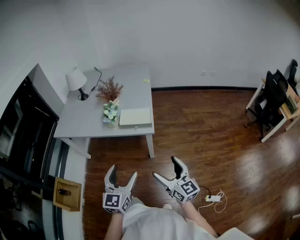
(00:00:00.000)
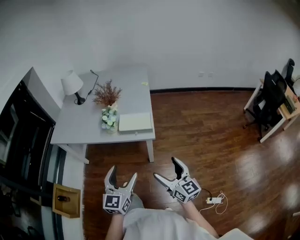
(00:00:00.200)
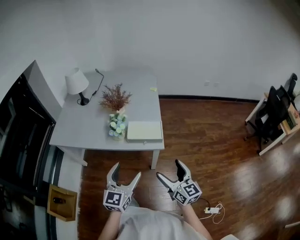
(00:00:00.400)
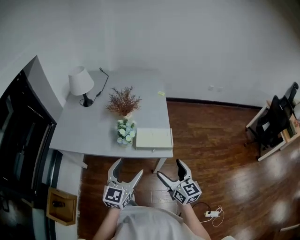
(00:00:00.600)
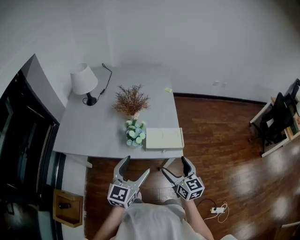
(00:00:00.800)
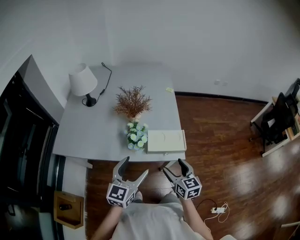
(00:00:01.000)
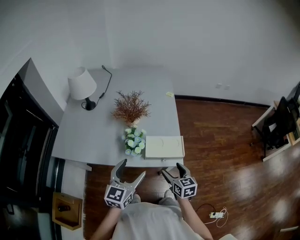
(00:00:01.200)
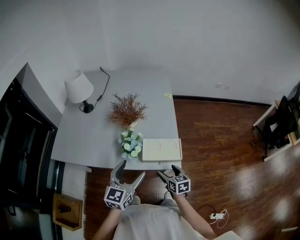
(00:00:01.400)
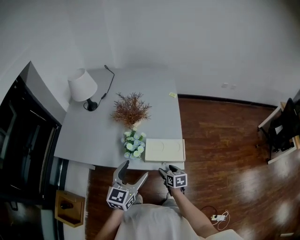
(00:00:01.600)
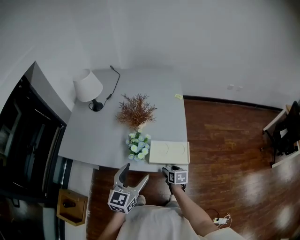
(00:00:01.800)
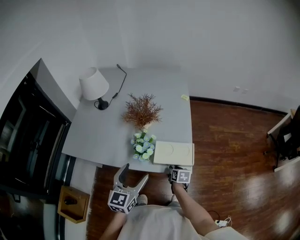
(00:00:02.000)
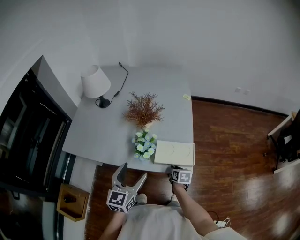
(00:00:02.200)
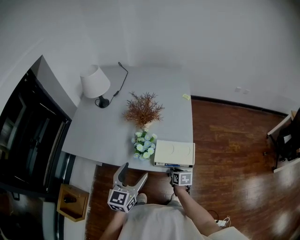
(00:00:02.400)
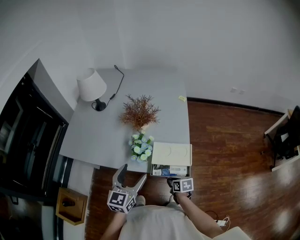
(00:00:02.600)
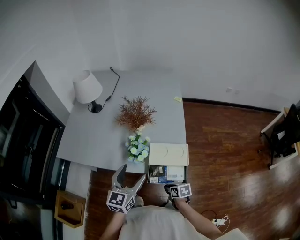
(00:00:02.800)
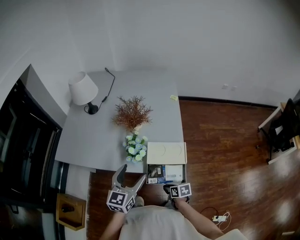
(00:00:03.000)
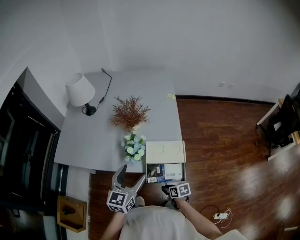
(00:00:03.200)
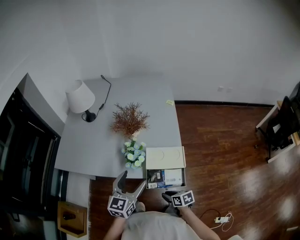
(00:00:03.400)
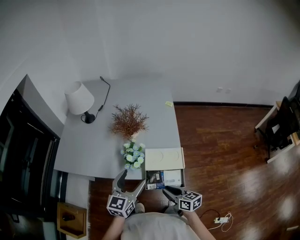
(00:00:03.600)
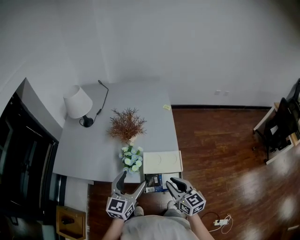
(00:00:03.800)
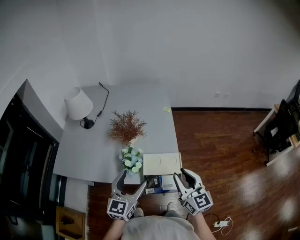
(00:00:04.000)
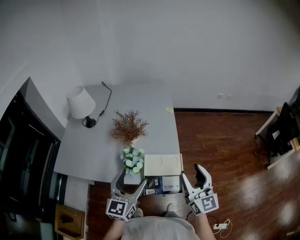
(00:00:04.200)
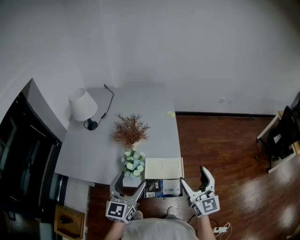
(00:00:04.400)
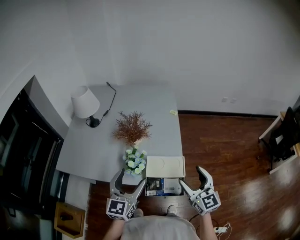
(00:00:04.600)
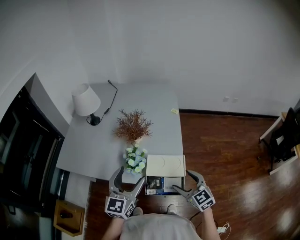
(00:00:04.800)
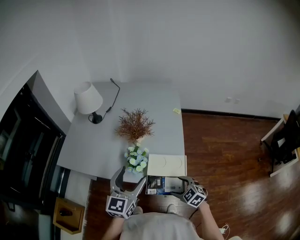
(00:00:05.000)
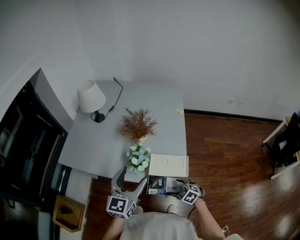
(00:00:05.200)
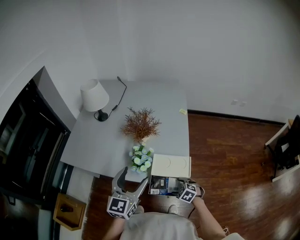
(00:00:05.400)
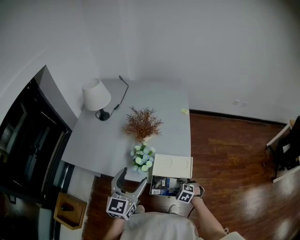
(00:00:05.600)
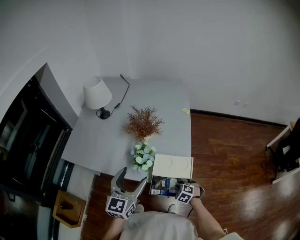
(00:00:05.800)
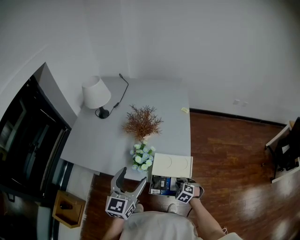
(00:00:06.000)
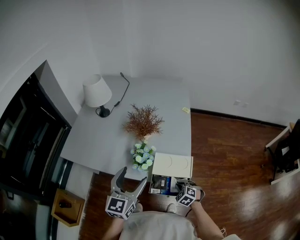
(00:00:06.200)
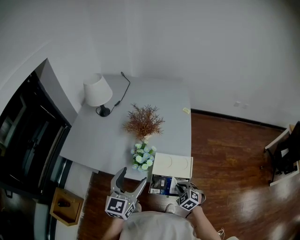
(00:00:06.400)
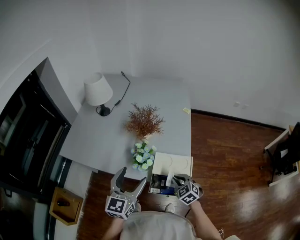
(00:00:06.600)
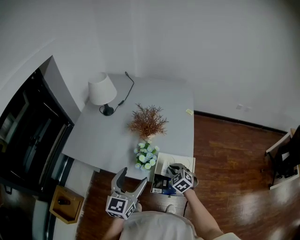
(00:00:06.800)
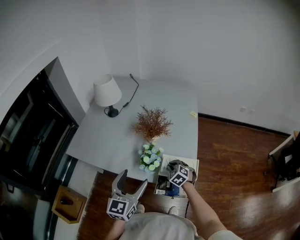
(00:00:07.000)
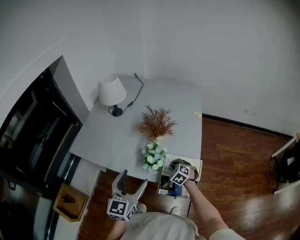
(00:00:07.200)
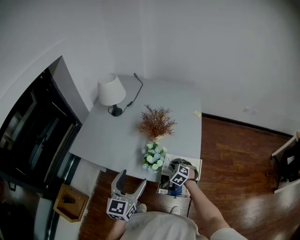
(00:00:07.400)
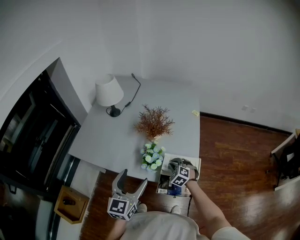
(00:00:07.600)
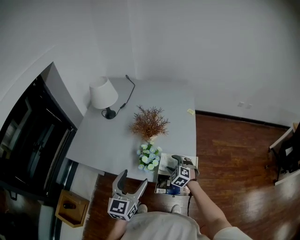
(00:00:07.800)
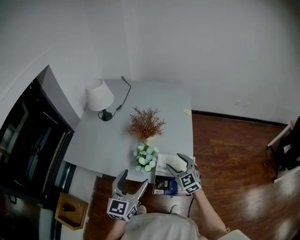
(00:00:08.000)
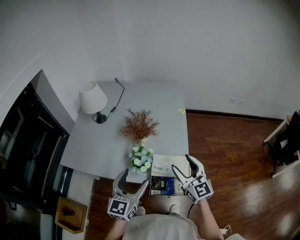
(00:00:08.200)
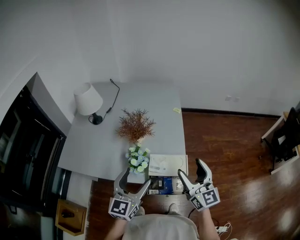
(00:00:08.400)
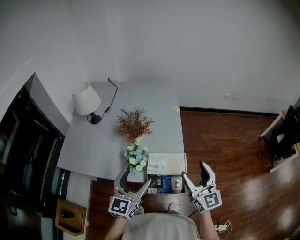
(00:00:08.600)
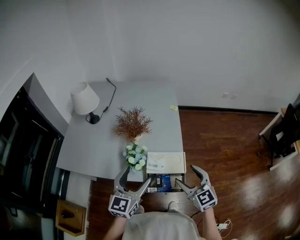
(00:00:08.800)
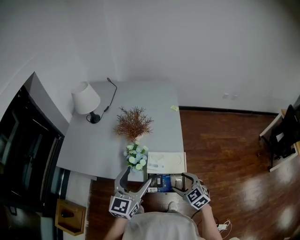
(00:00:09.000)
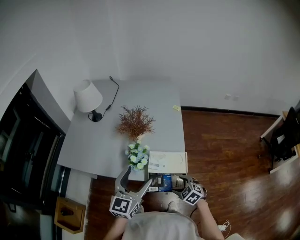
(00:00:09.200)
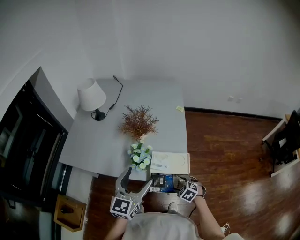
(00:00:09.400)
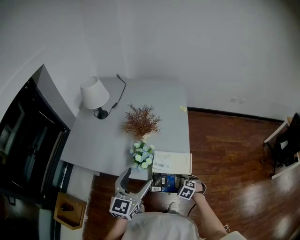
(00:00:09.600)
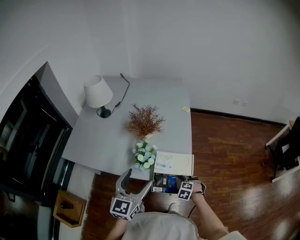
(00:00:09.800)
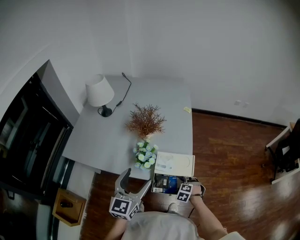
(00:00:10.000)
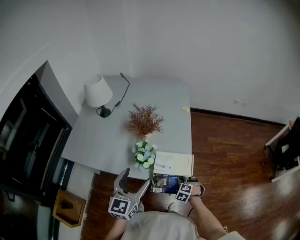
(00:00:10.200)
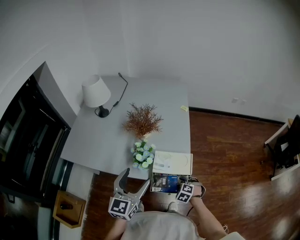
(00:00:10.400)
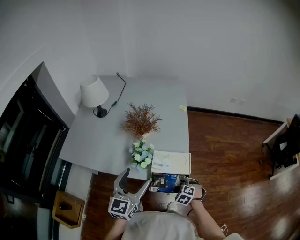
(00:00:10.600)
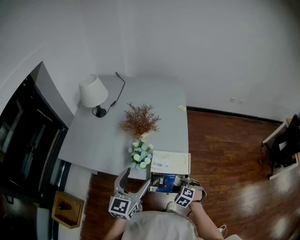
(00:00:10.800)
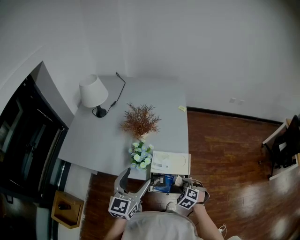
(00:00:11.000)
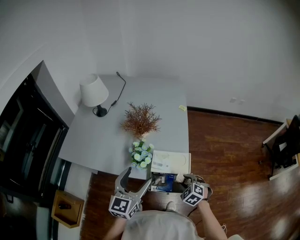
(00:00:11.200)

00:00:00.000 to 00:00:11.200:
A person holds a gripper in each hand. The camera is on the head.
00:00:00.000 to 00:00:01.600: The left gripper goes about 30 cm forward, while the right gripper is displaced forward, downward and to the left by about 40 cm, tilts its fingers about 40 degrees downward, and closes up.
00:00:01.600 to 00:00:03.200: The right gripper moves backward and downward, about 10 cm, changes its angle by some 20 degrees, and closes its fingers.
00:00:03.200 to 00:00:04.800: The left gripper goes some 10 cm upward. The right gripper moves upward, about 25 cm, rolls counterclockwise, seen from behind, by about 50 degrees, and opens its fingers.
00:00:04.800 to 00:00:06.400: The right gripper is displaced downward by about 15 cm, changes its angle by approximately 30 degrees, and closes its fingers.
00:00:06.400 to 00:00:08.000: The right gripper moves upward and forward, roughly 20 cm, tips its fingers upward by about 30 degrees, and opens up.
00:00:08.000 to 00:00:09.600: The right gripper moves downward and backward, roughly 25 cm, and points its fingers approximately 50 degrees further downward.
00:00:09.600 to 00:00:11.200: The right gripper is displaced upward by about 10 cm.

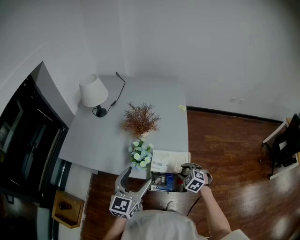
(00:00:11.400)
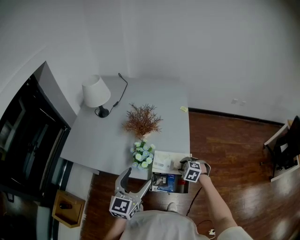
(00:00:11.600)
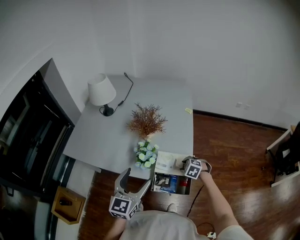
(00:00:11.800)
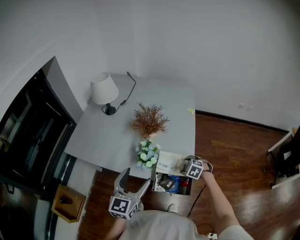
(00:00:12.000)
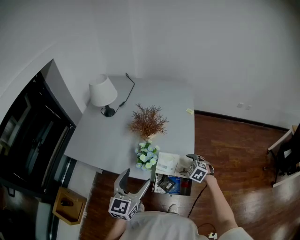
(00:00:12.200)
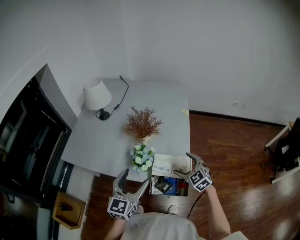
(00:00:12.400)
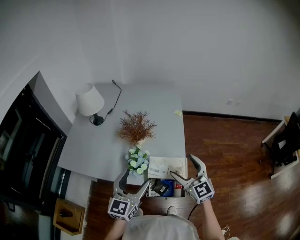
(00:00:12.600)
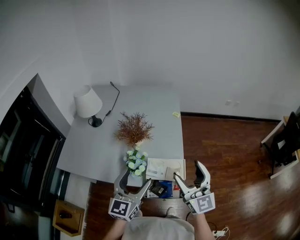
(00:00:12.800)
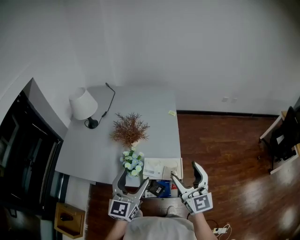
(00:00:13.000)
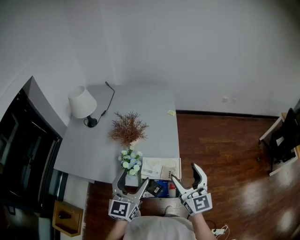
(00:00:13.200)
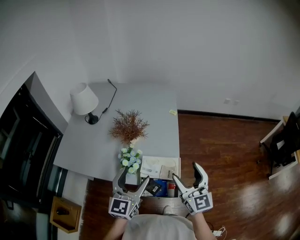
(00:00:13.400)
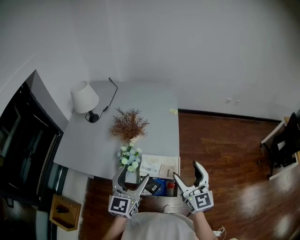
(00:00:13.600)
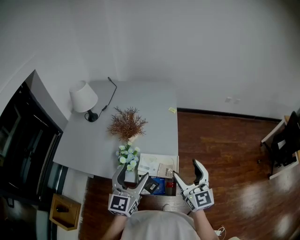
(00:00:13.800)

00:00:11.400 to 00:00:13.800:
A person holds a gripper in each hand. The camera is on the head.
00:00:11.400 to 00:00:12.600: The right gripper is displaced upward by approximately 20 cm, tips its fingers upward by some 50 degrees, and opens its fingers.
00:00:12.600 to 00:00:13.800: The grippers both shift to the right by some 5 cm.

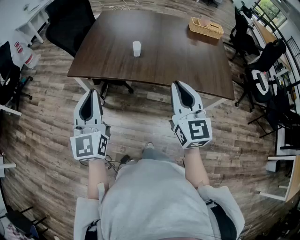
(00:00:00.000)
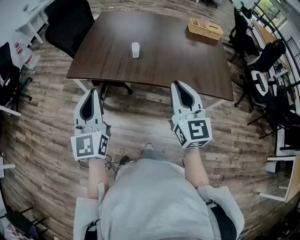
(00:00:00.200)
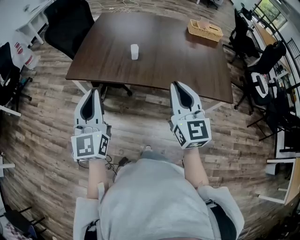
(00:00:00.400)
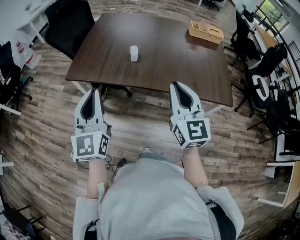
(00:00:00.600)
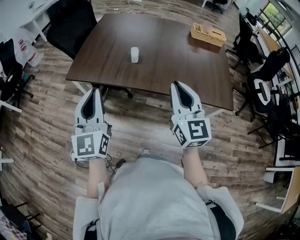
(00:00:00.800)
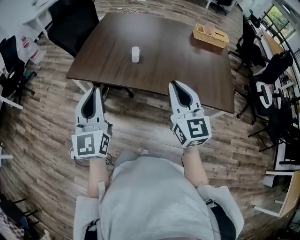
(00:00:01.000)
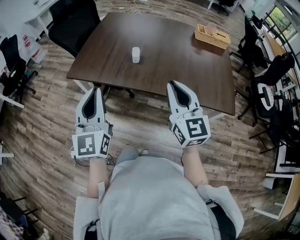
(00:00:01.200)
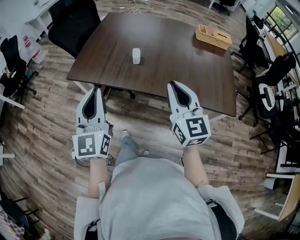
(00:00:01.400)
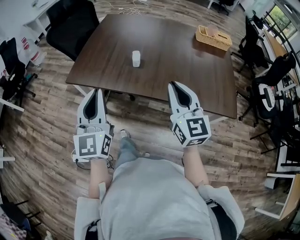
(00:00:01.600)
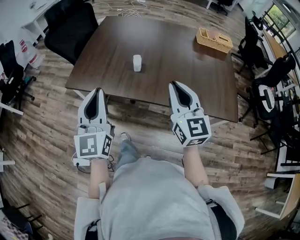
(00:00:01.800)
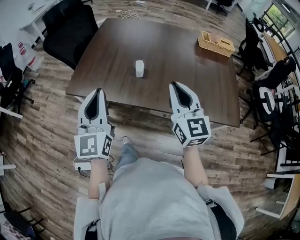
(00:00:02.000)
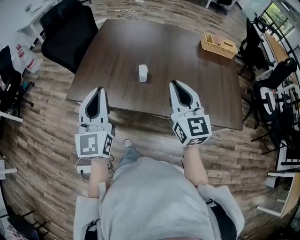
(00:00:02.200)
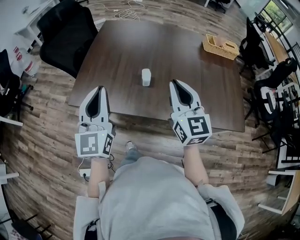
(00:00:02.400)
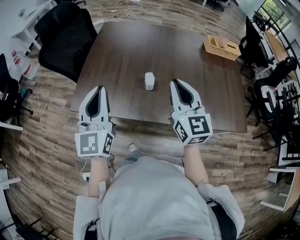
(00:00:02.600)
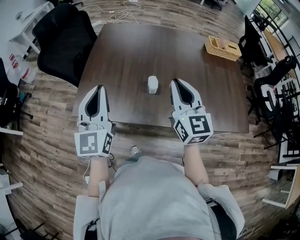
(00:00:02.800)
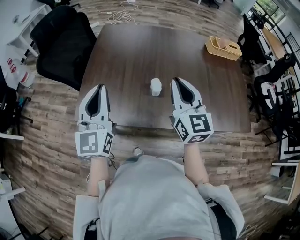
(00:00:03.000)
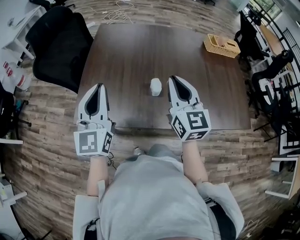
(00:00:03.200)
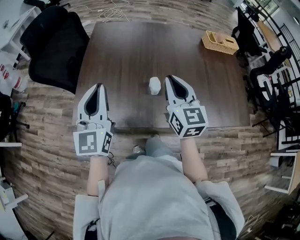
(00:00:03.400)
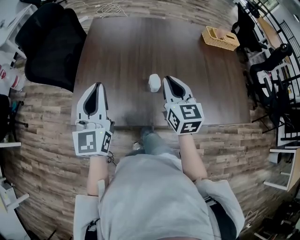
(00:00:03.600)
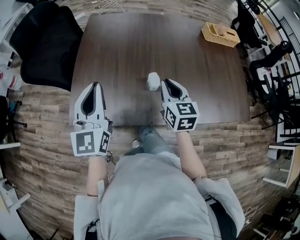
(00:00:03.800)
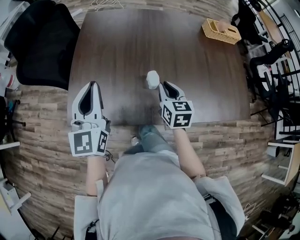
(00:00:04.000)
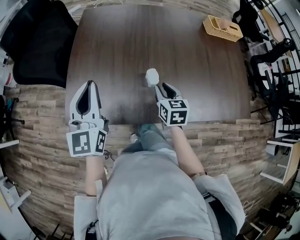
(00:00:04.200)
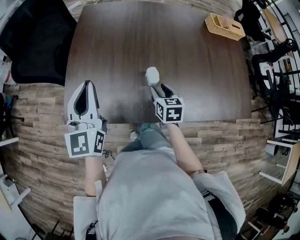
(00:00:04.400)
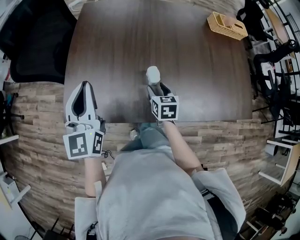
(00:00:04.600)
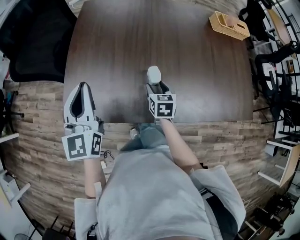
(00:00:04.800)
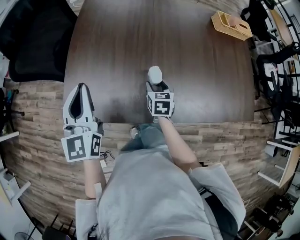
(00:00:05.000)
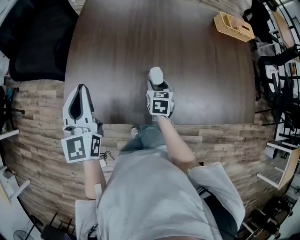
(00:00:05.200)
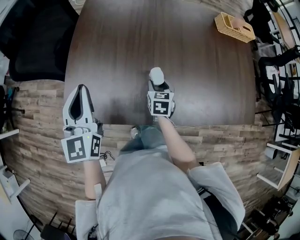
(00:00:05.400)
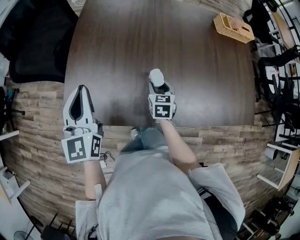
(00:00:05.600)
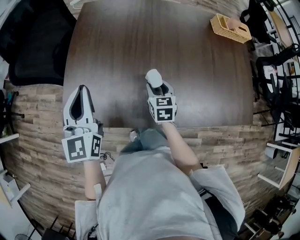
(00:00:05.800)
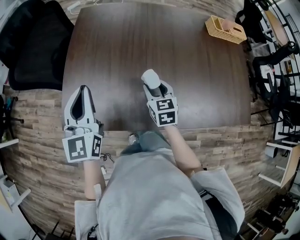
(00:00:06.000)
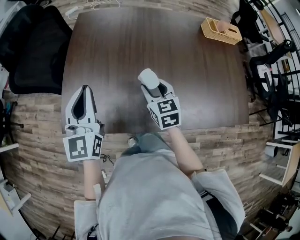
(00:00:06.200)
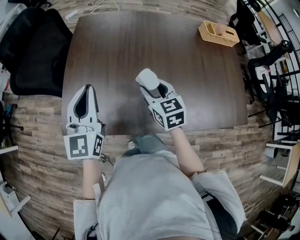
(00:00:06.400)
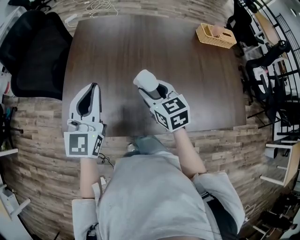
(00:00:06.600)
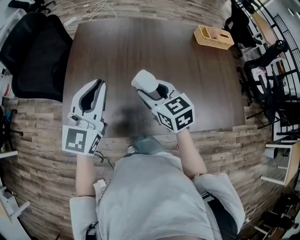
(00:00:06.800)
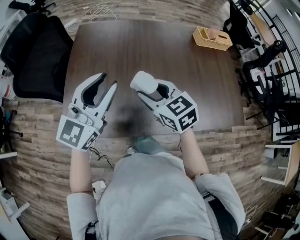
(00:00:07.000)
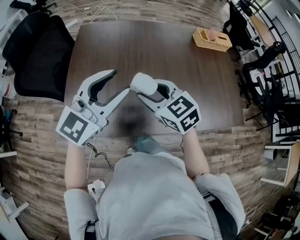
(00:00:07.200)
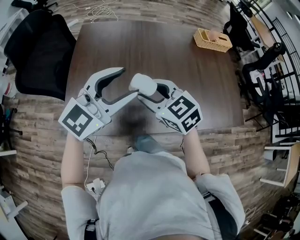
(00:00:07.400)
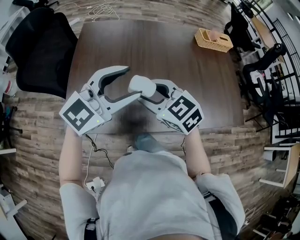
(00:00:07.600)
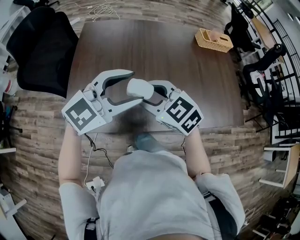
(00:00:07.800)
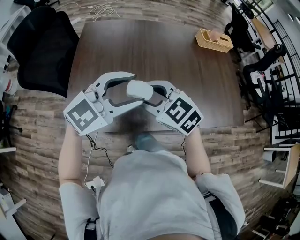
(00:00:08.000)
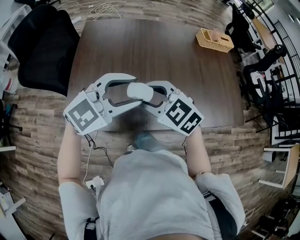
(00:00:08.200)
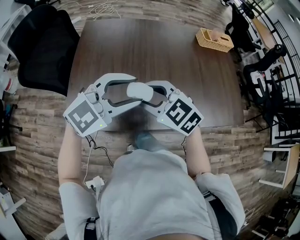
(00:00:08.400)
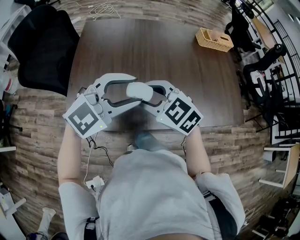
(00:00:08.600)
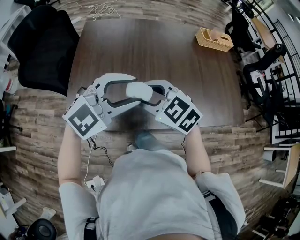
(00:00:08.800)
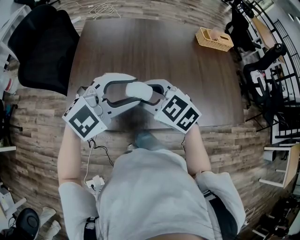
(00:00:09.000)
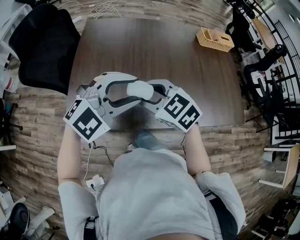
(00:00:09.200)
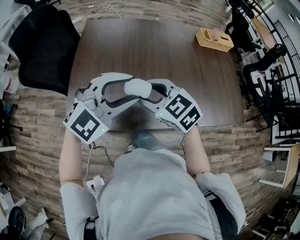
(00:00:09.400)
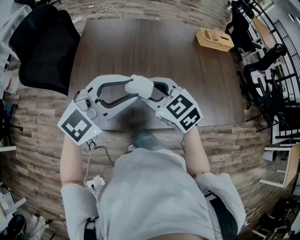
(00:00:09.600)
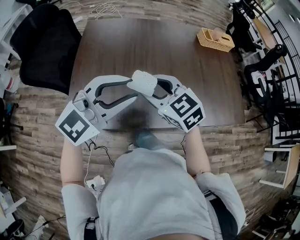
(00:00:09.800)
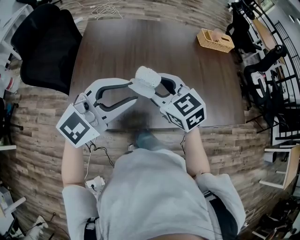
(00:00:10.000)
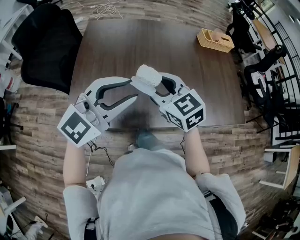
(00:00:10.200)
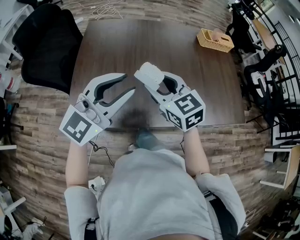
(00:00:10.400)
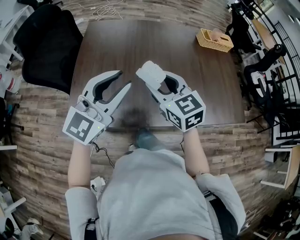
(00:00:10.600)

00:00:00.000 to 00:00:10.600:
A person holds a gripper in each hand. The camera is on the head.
00:00:00.000 to 00:00:01.600: The left gripper goes some 10 cm forward and to the right. Meanwhile the right gripper heads forward, covering some 10 cm.
00:00:01.600 to 00:00:03.000: Both grippers move forward and to the left, some 25 cm.
00:00:03.000 to 00:00:04.600: The right gripper goes approximately 30 cm downward, tips its fingers downward by about 40 degrees, and opens its fingers; the left gripper shifts roughly 10 cm forward and downward.
00:00:04.600 to 00:00:06.000: The right gripper changes place by roughly 5 cm.
00:00:06.000 to 00:00:07.600: The left gripper heads to the right and upward, covering about 15 cm, rotates some 60 degrees, and opens its fingers. Meanwhile the right gripper moves upward and backward, roughly 20 cm, and rotates approximately 30 degrees.
00:00:07.600 to 00:00:09.000: The left gripper turns by some 20 degrees.
00:00:09.000 to 00:00:10.600: The left gripper ends up roughly 5 cm from where it was, and swivels about 40 degrees, while the right gripper ends up about 5 cm from where it was, and rotates some 30 degrees.
